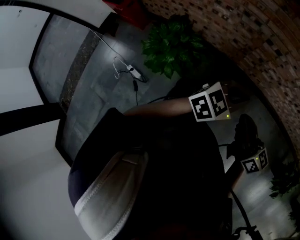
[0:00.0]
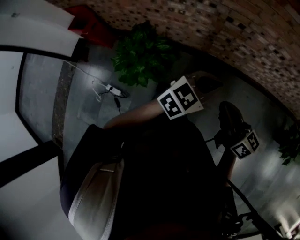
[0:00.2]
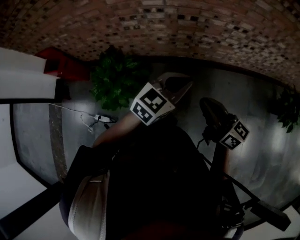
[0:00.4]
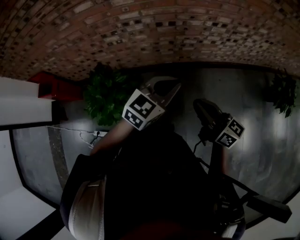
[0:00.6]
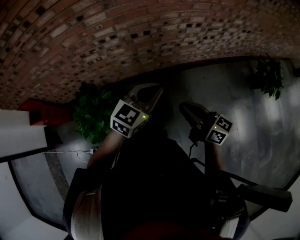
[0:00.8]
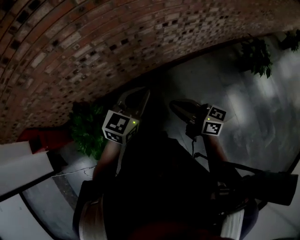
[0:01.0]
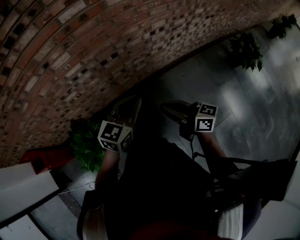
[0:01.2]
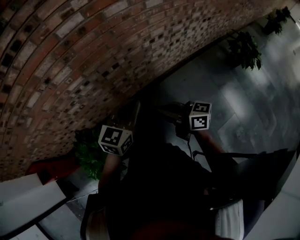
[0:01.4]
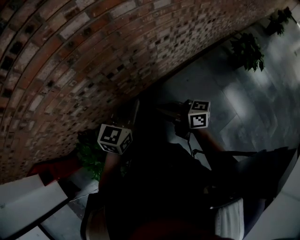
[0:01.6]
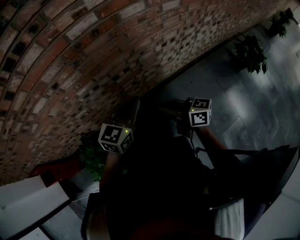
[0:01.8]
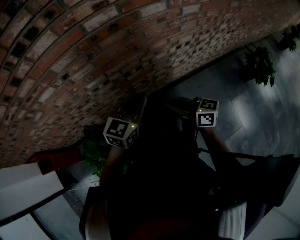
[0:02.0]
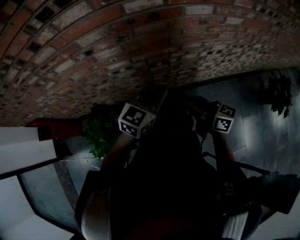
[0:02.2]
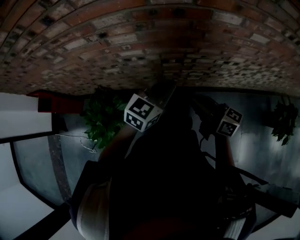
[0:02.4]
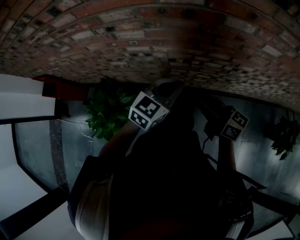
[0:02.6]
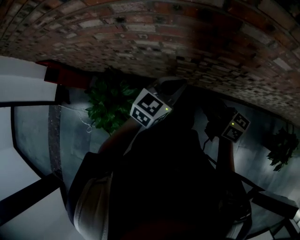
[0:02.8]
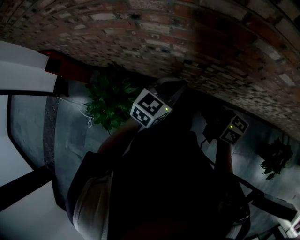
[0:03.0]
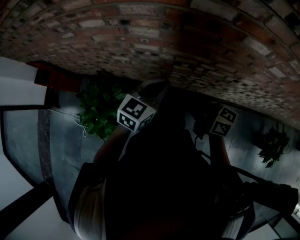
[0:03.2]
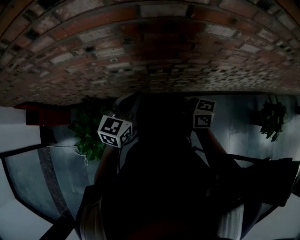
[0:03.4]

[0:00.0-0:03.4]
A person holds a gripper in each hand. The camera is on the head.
0:00.0 to 0:01.6: Both grippers travel together forward, roughly 15 cm. The right gripper turns by about 20 degrees.
0:01.6 to 0:03.4: The right gripper changes place by some 15 cm, and turns by approximately 30 degrees; the left gripper moves about 15 cm, and rotates roughly 30 degrees.

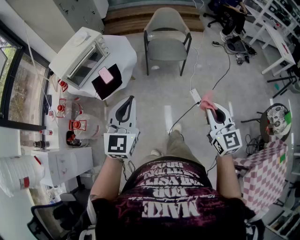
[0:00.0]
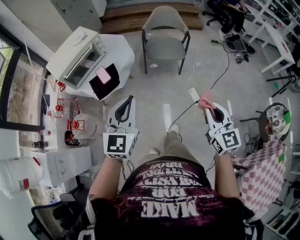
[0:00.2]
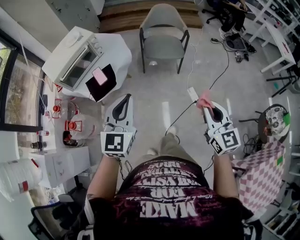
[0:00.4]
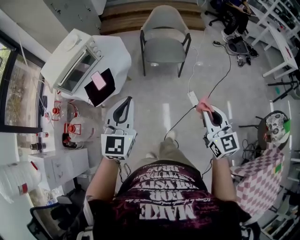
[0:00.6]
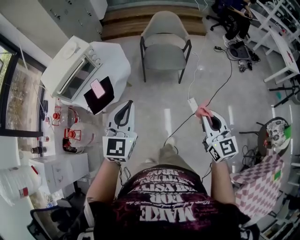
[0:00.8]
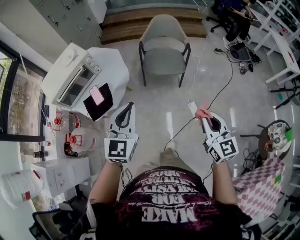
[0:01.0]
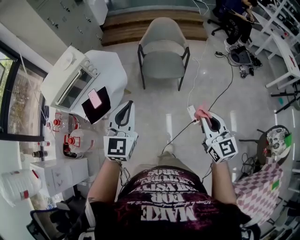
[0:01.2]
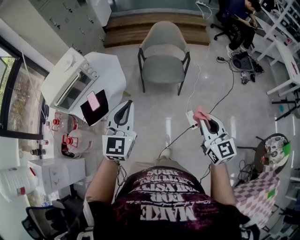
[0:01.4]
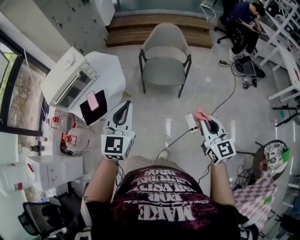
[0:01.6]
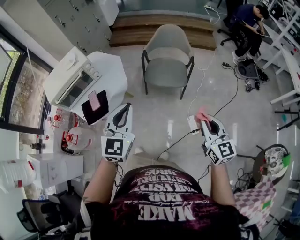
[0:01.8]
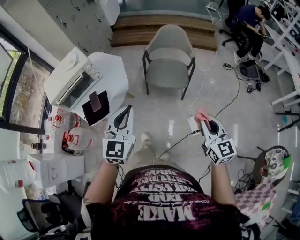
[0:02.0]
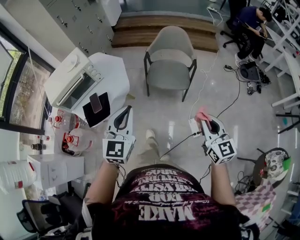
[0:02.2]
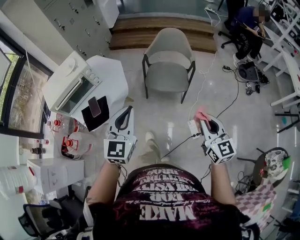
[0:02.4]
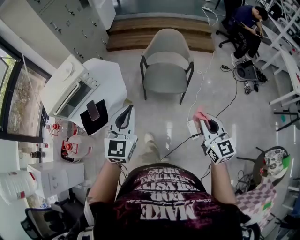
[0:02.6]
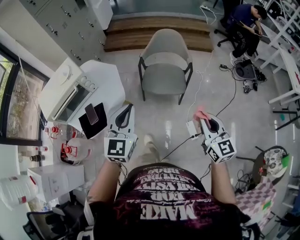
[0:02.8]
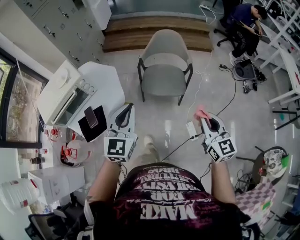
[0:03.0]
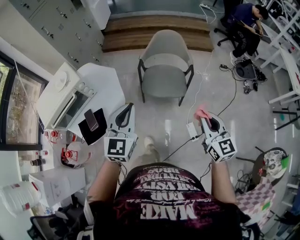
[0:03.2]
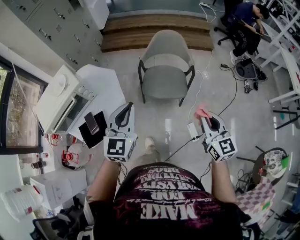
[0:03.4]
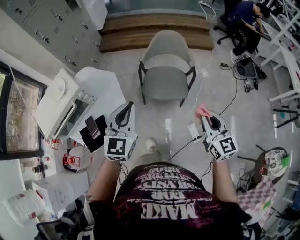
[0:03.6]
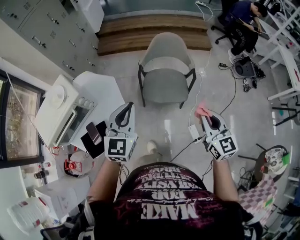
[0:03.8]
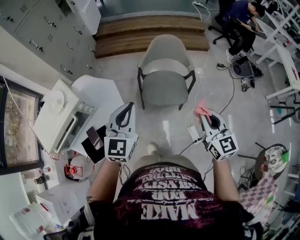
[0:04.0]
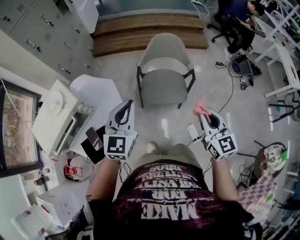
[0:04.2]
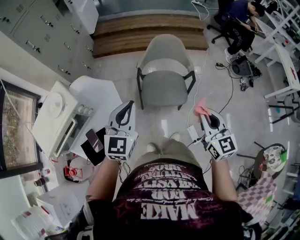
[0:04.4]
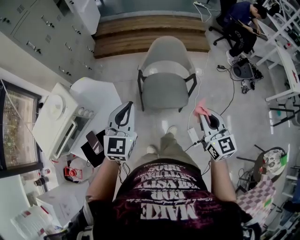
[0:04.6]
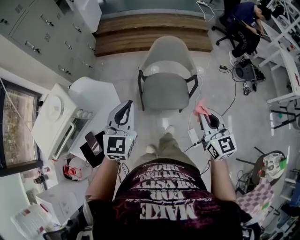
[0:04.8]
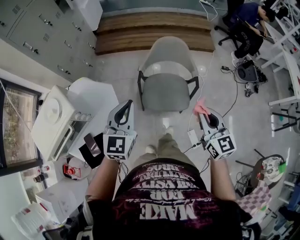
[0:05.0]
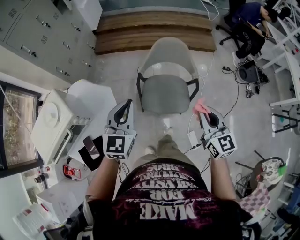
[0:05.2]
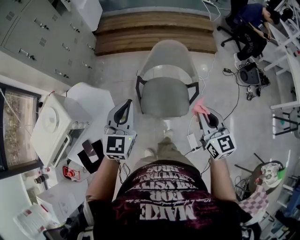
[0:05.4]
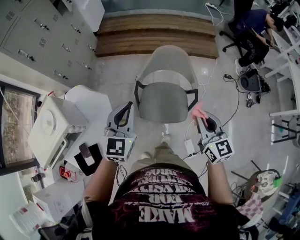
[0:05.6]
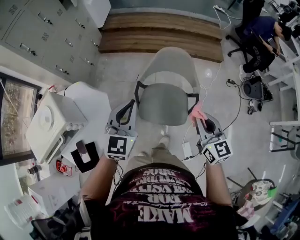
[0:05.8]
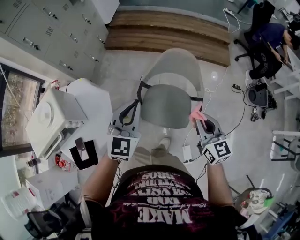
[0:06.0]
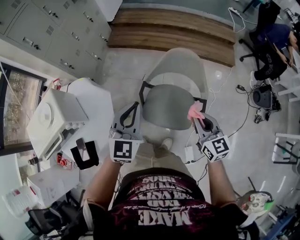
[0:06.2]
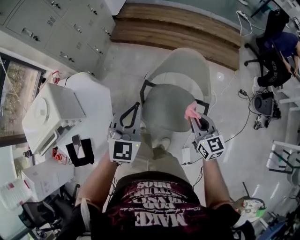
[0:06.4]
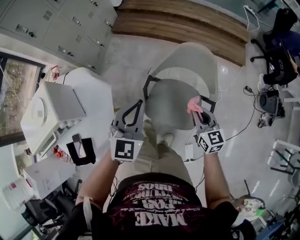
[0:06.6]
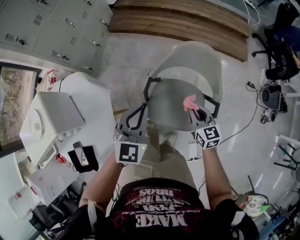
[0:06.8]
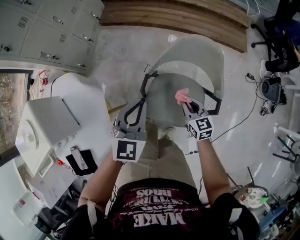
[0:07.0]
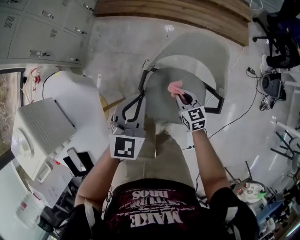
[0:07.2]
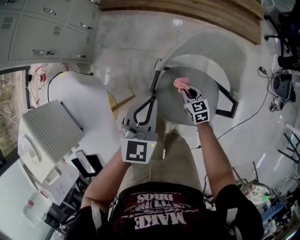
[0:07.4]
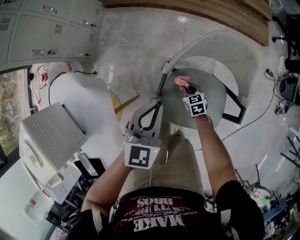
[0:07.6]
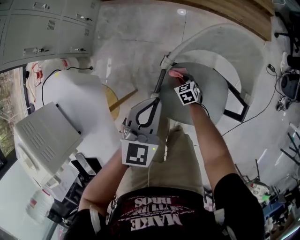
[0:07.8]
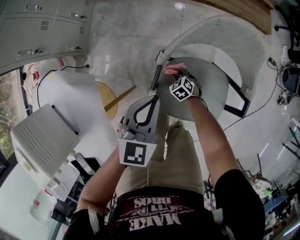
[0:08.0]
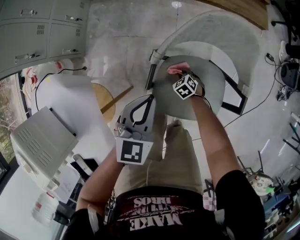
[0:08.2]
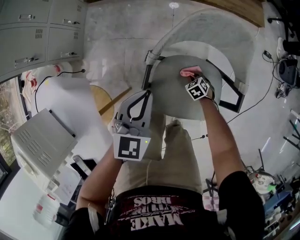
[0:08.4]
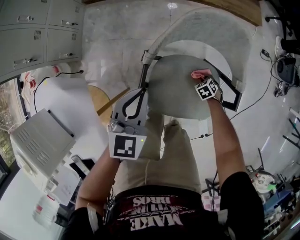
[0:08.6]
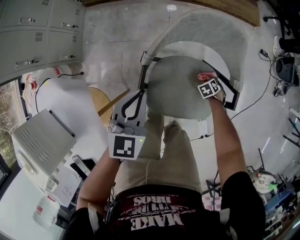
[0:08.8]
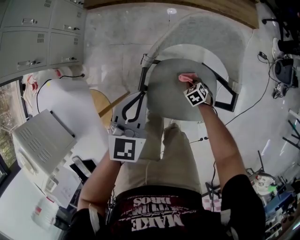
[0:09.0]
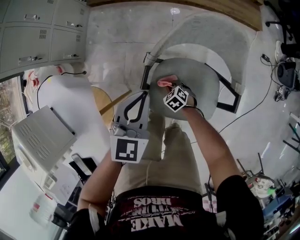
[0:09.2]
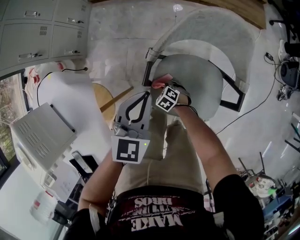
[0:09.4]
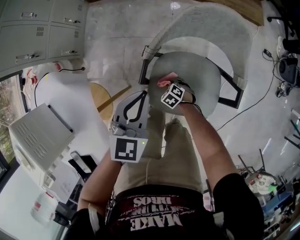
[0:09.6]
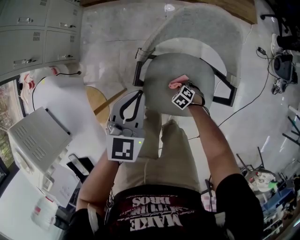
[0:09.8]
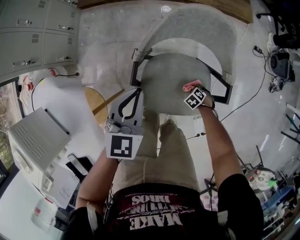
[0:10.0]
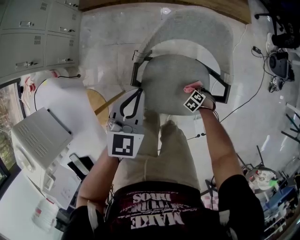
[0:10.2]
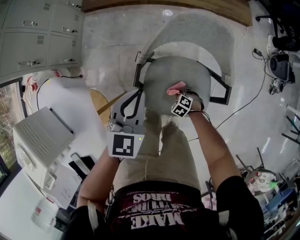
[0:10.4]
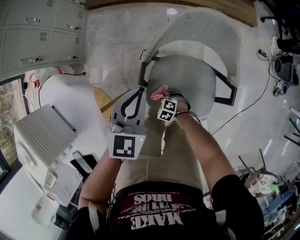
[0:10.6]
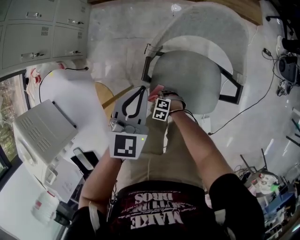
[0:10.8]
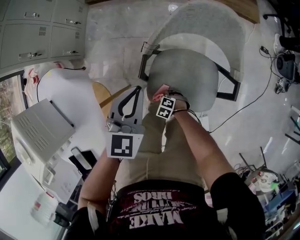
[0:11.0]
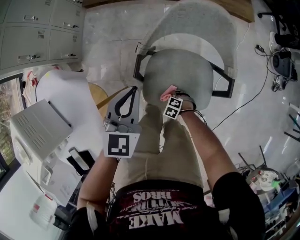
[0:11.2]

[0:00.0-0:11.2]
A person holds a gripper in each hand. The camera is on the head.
0:00.0 to 0:01.6: The grippers both shift forward and to the right by roughly 25 cm.
0:01.6 to 0:03.2: Both grippers move forward, about 15 cm.
0:03.2 to 0:04.8: The grippers both shift forward by some 15 cm.
0:04.8 to 0:06.4: The right gripper is displaced forward and downward by about 30 cm, and swivels approximately 20 degrees. The left gripper heads forward, to the right and downward, covering about 20 cm.
0:06.4 to 0:08.0: The left gripper goes some 30 cm downward and forward, and swivels about 20 degrees; the right gripper travels downward by some 50 cm, and angles its fingers downward, by some 50 degrees.

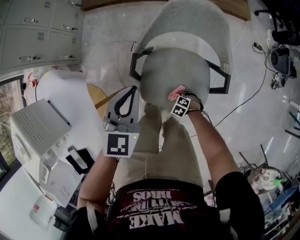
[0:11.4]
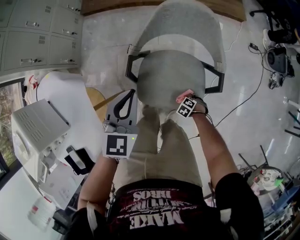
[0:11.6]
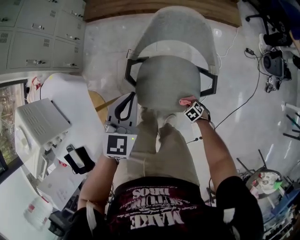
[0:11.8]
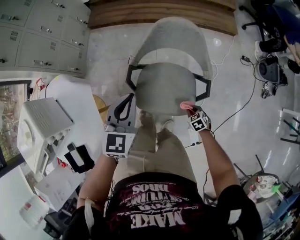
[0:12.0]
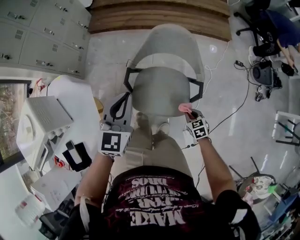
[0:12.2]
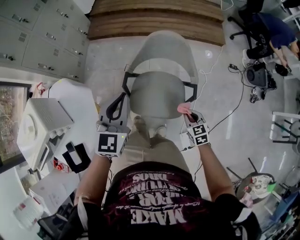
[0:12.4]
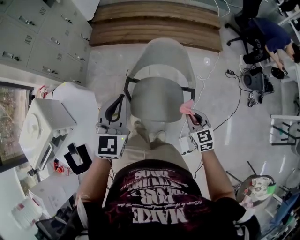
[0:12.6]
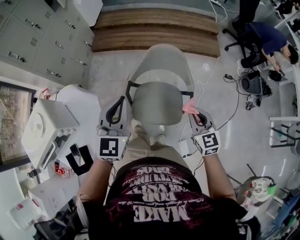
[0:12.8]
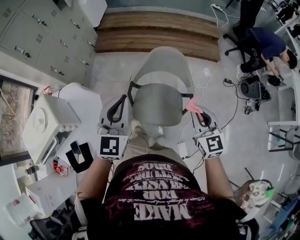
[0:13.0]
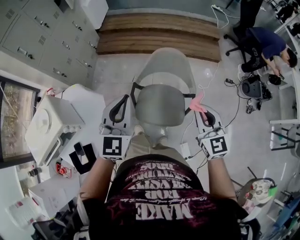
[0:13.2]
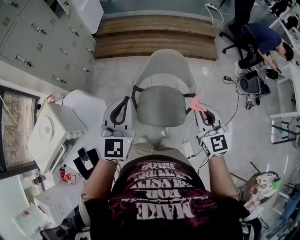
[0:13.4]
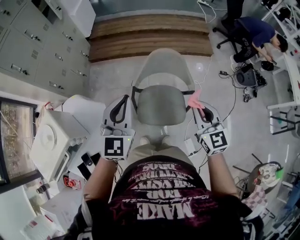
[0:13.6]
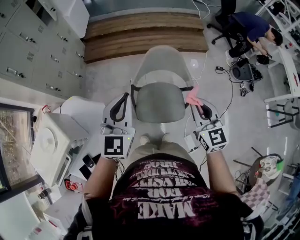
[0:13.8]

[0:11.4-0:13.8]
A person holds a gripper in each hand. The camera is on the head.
0:11.4 to 0:12.6: The left gripper heads upward, covering about 20 cm; the right gripper shifts about 50 cm upward, and angles its fingers upward, by roughly 50 degrees.
0:12.6 to 0:13.8: The right gripper shifts roughly 25 cm upward and to the left, and changes its angle by some 20 degrees. Meanwhile the left gripper travels upward and to the left by some 10 cm.

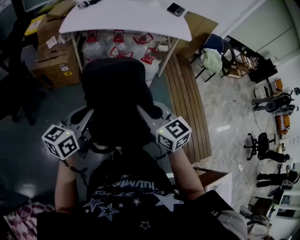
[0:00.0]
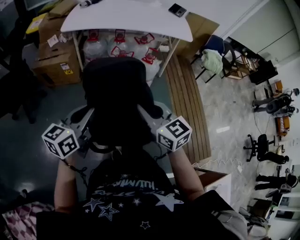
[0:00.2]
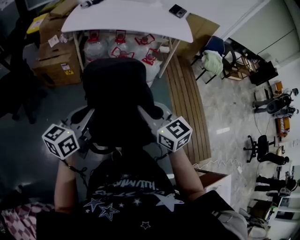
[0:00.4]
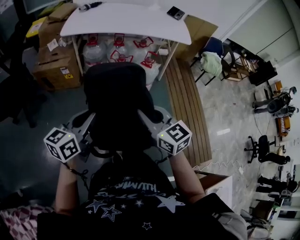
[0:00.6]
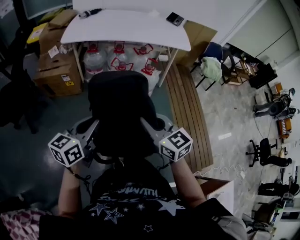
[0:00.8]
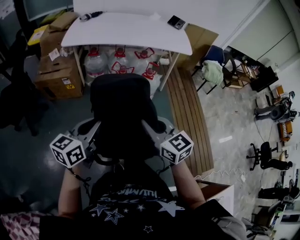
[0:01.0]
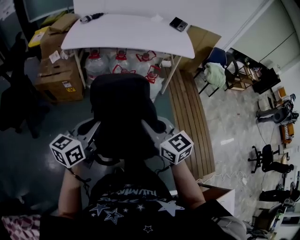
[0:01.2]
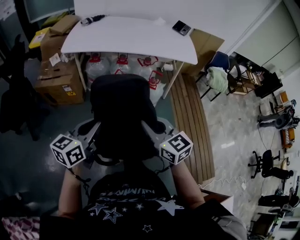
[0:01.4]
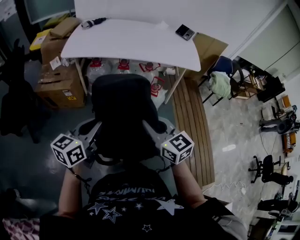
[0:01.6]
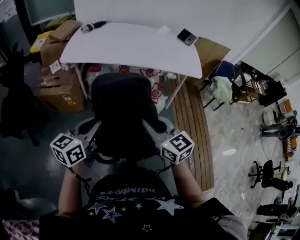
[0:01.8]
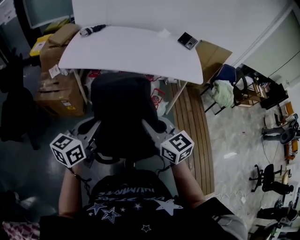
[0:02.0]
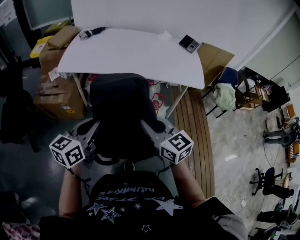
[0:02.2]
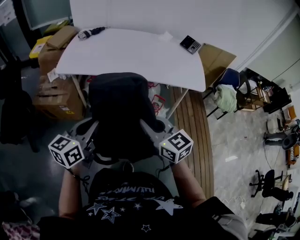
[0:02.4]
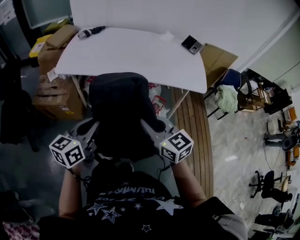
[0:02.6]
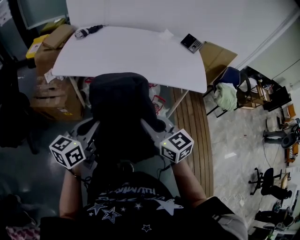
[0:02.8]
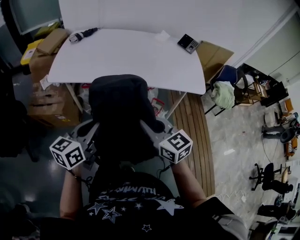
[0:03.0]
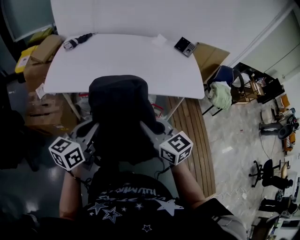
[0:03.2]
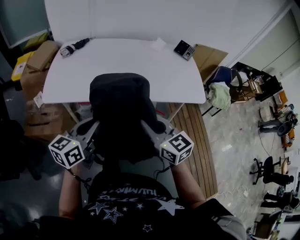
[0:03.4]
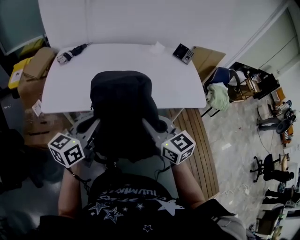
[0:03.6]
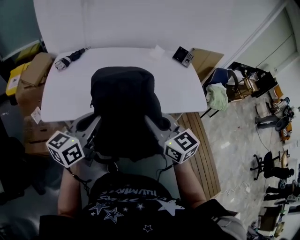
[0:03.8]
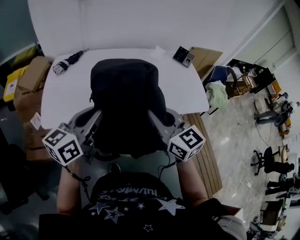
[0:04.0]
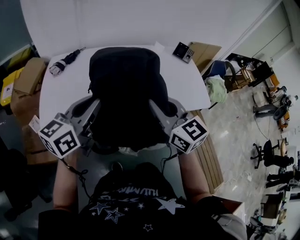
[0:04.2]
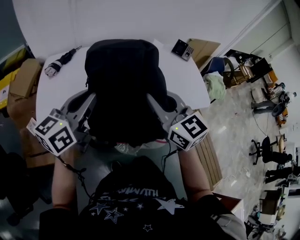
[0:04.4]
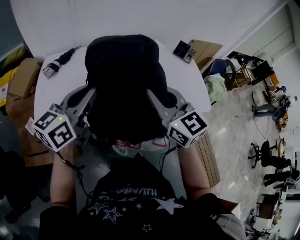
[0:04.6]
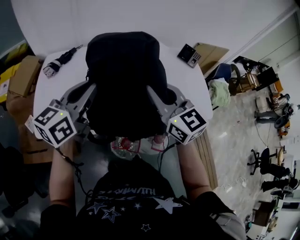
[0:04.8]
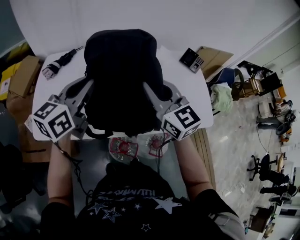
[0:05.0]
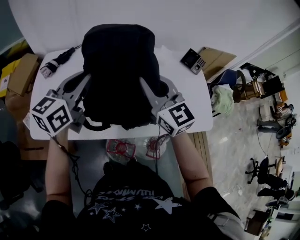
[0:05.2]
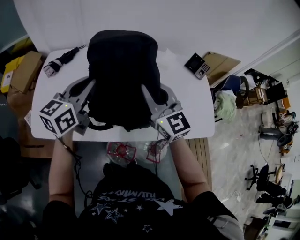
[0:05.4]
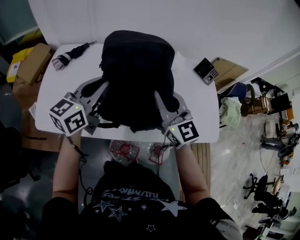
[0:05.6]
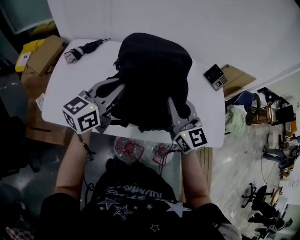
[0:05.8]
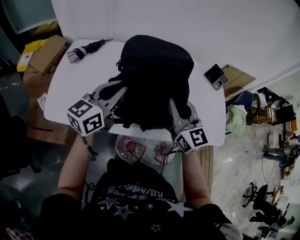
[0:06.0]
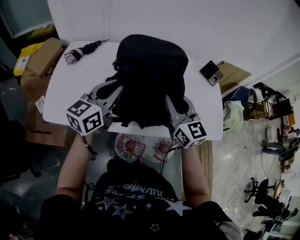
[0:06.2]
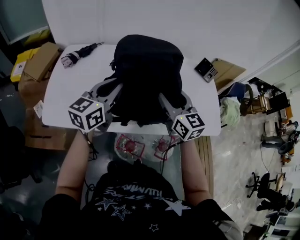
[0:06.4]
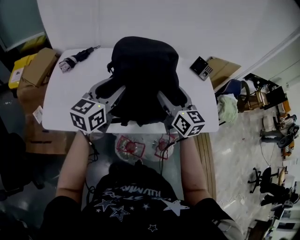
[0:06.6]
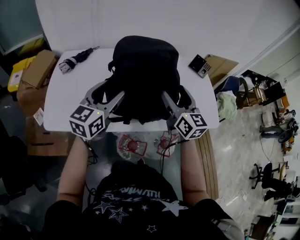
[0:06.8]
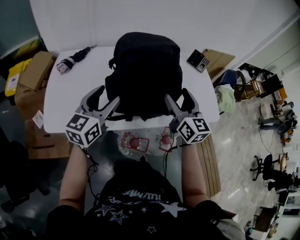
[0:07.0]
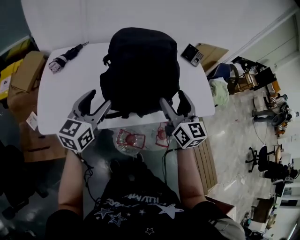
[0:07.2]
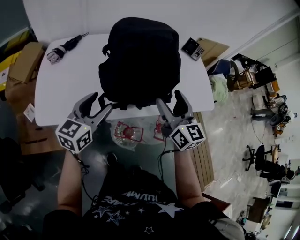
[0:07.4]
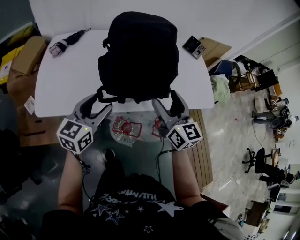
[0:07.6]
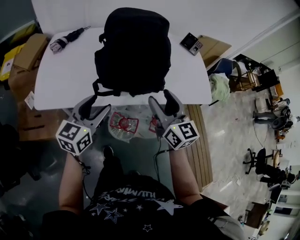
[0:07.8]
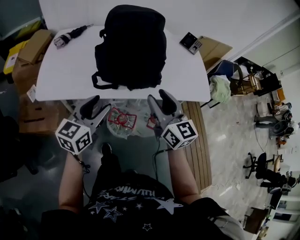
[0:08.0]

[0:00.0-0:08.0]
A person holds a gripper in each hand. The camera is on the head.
0:00.0 to 0:01.6: The grippers both shift forward by roughly 20 cm.
0:01.6 to 0:03.2: Both grippers travel together forward, approximately 30 cm.
0:03.2 to 0:04.8: Both grippers move forward, roughly 35 cm.
0:04.8 to 0:06.4: The right gripper travels downward and forward by approximately 10 cm, and opens, while the left gripper travels downward by about 5 cm.
0:06.4 to 0:08.0: The grippers both shift backward by some 20 cm. The right gripper opens, then closes again. Meanwhile the left gripper opens.
